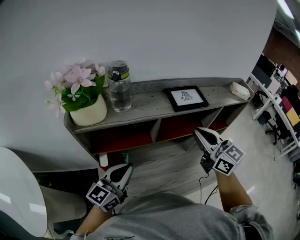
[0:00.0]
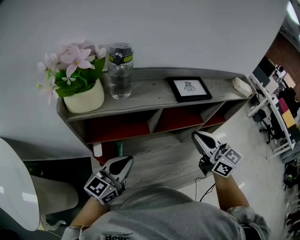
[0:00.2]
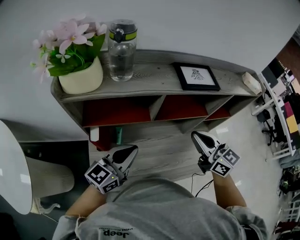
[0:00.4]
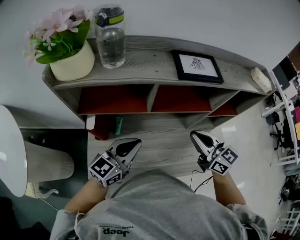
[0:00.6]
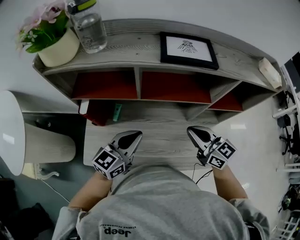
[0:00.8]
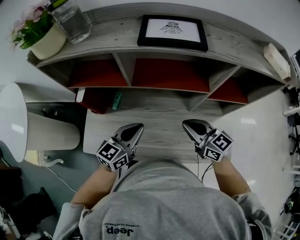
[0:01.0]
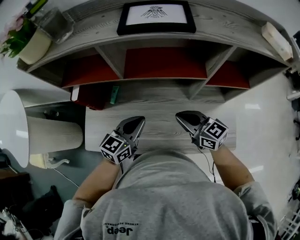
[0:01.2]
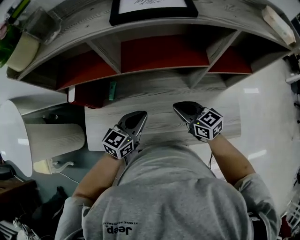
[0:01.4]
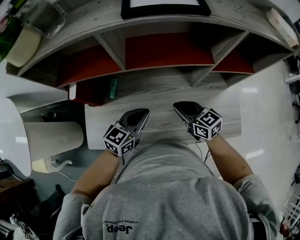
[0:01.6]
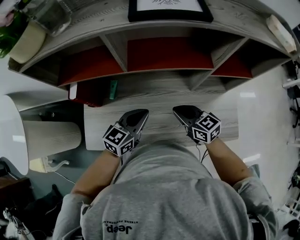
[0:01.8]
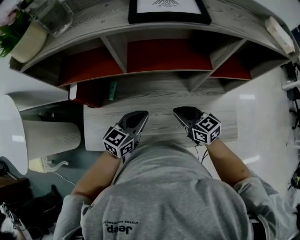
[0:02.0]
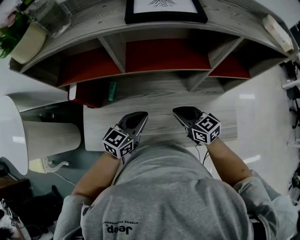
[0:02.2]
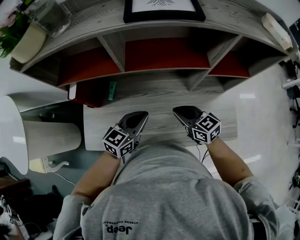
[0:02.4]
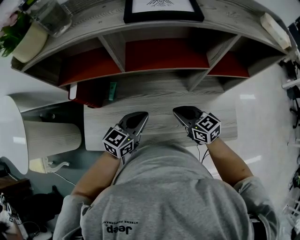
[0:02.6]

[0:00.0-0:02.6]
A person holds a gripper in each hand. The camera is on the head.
0:00.0 to 0:01.2: The right gripper heads downward, covering about 30 cm, and rotates some 40 degrees. The left gripper shifts about 25 cm to the right and downward, and swivels about 20 degrees.
0:01.2 to 0:02.6: The right gripper ends up some 5 cm from where it was.

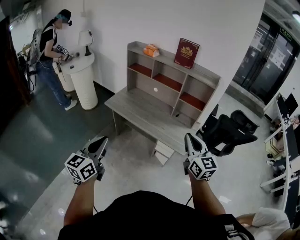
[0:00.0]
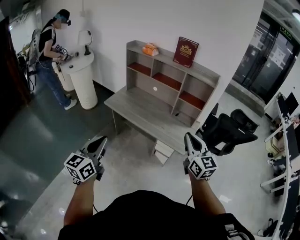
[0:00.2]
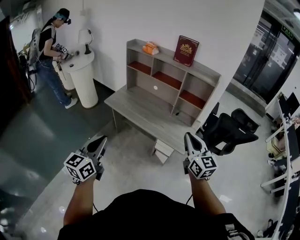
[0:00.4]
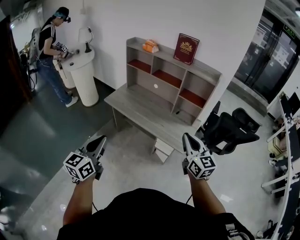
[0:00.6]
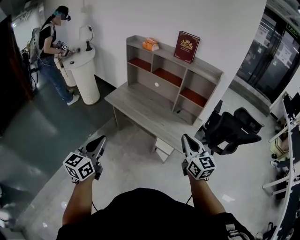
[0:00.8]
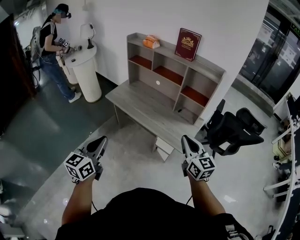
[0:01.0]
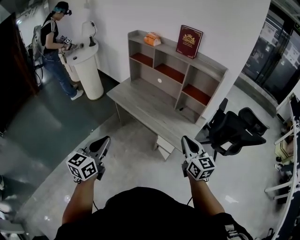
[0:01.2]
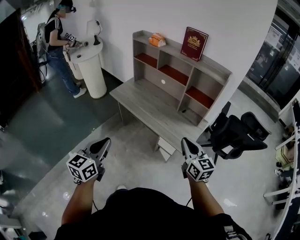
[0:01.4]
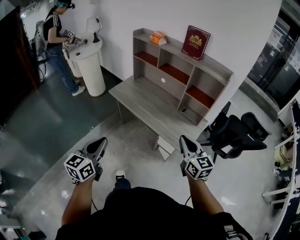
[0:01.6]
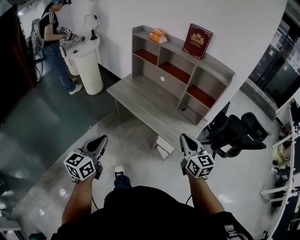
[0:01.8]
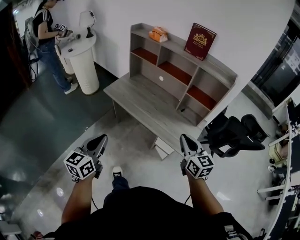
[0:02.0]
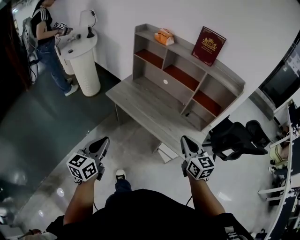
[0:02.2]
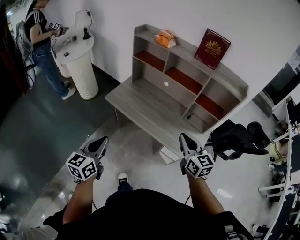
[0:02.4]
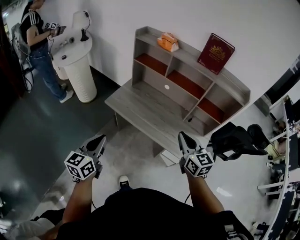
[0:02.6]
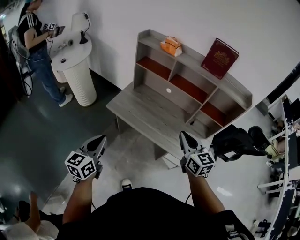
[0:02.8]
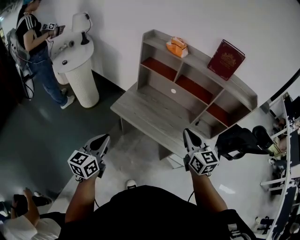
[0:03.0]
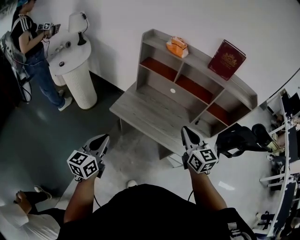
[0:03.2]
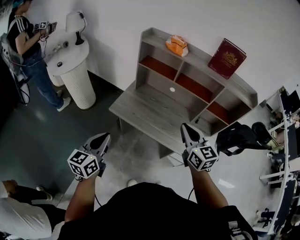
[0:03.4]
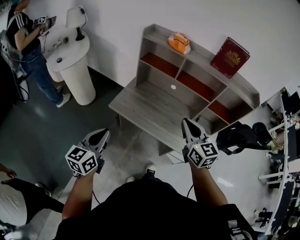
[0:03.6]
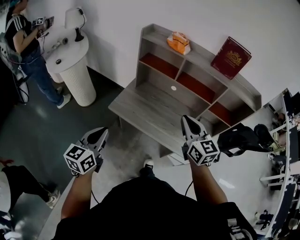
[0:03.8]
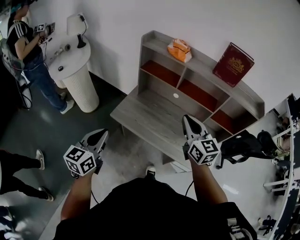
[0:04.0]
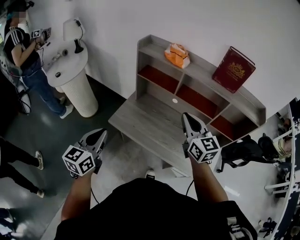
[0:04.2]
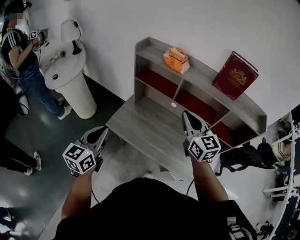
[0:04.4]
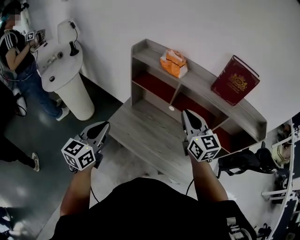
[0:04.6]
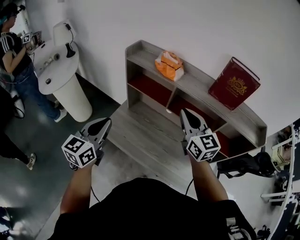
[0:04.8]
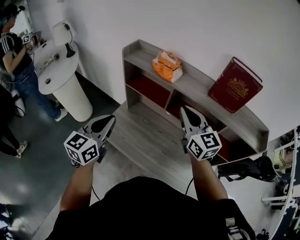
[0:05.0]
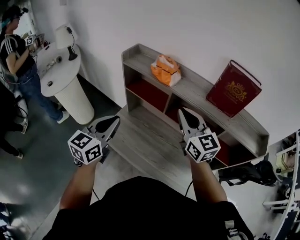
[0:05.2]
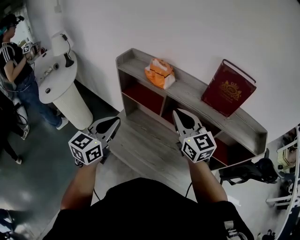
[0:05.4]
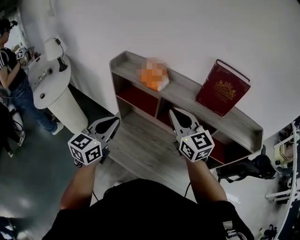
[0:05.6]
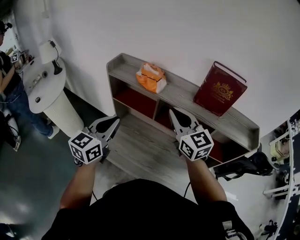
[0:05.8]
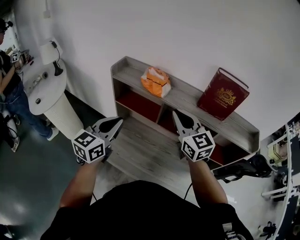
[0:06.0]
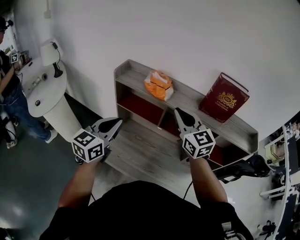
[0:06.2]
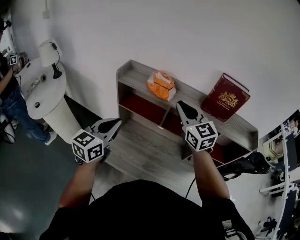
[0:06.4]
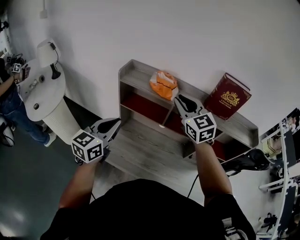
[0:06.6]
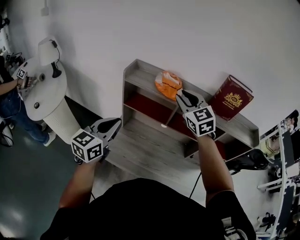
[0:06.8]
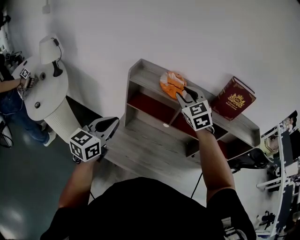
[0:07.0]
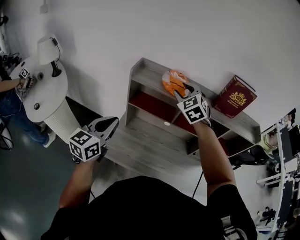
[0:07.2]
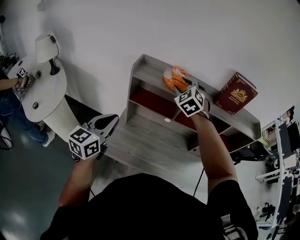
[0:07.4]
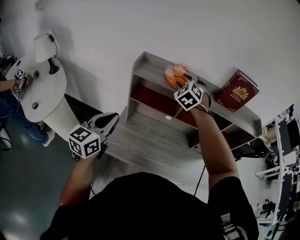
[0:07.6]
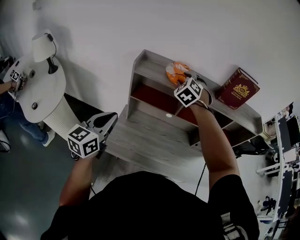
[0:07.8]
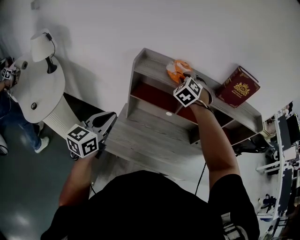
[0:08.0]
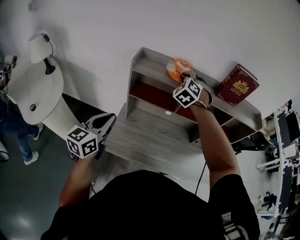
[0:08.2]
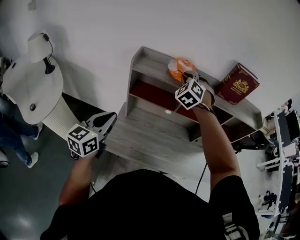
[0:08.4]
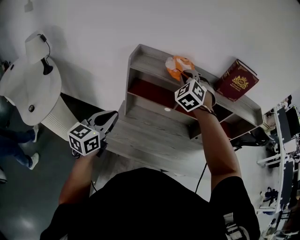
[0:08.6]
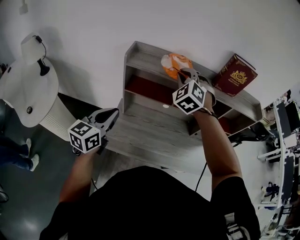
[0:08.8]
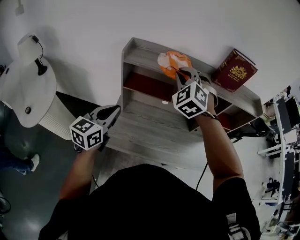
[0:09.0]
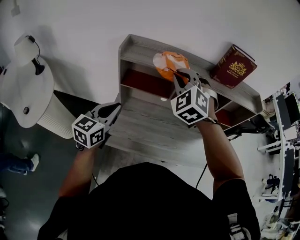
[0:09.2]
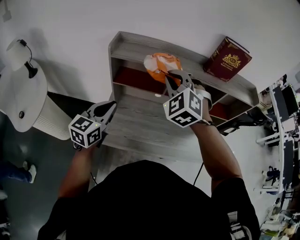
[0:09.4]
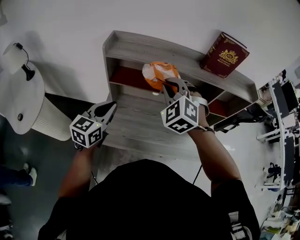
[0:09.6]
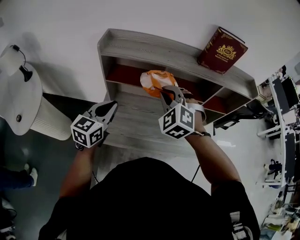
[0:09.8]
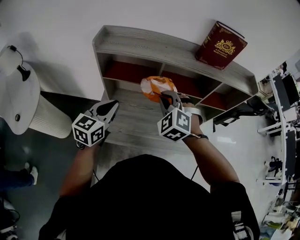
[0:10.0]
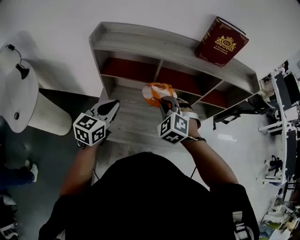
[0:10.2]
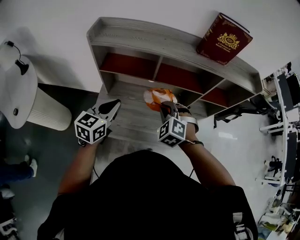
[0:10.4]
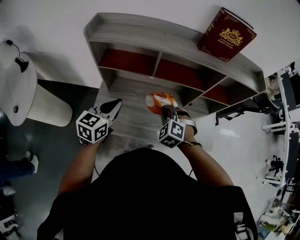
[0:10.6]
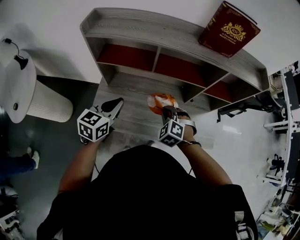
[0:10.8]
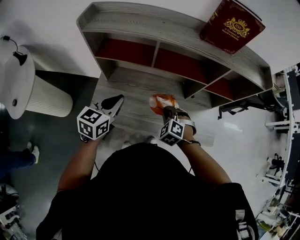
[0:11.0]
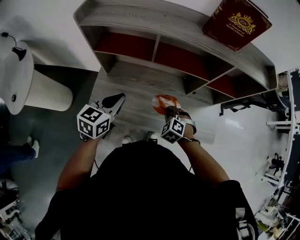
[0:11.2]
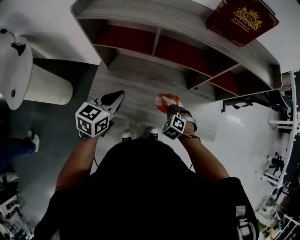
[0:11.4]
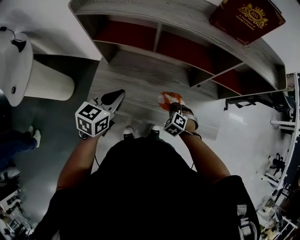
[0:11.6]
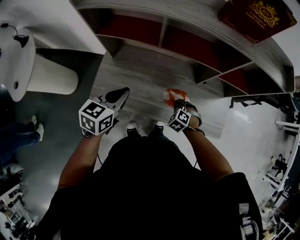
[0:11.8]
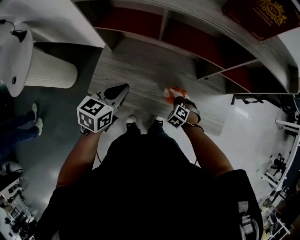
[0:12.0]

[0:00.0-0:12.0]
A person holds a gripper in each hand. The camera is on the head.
0:00.0 to 0:01.6: The left gripper shifts about 10 cm to the right and downward; the right gripper goes some 10 cm downward and forward.
0:01.6 to 0:03.0: Both grippers move forward and to the left, approximately 35 cm.
0:03.0 to 0:04.4: The two grippers go some 20 cm forward.
0:04.4 to 0:06.0: The right gripper goes roughly 10 cm forward. The left gripper heads forward and to the right, covering some 20 cm.
0:06.0 to 0:07.6: The right gripper moves forward and to the left, roughly 20 cm, turns by approximately 60 degrees, and opens. Meanwhile the left gripper moves to the left, approximately 15 cm.
0:07.6 to 0:09.0: The right gripper goes approximately 10 cm backward, and closes.
0:09.0 to 0:10.4: The right gripper travels downward, to the right and backward by approximately 25 cm, and swivels approximately 20 degrees; the left gripper moves to the right and downward, some 15 cm.
0:10.4 to 0:12.0: The right gripper is displaced downward and to the right by some 35 cm, and swivels about 20 degrees, while the left gripper goes roughly 10 cm downward and to the right.

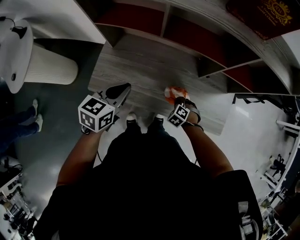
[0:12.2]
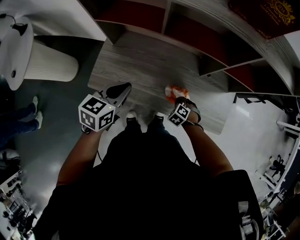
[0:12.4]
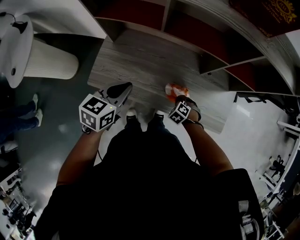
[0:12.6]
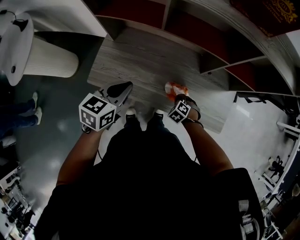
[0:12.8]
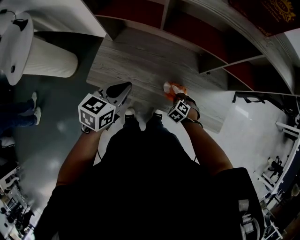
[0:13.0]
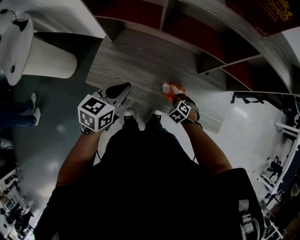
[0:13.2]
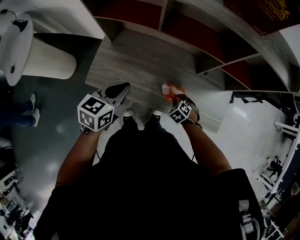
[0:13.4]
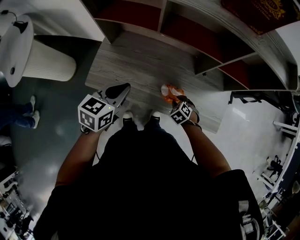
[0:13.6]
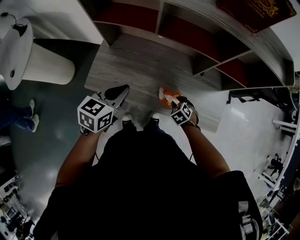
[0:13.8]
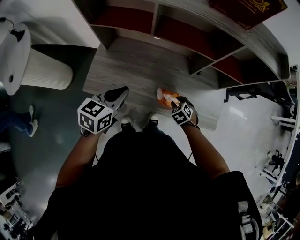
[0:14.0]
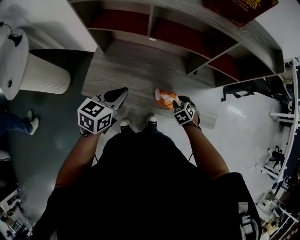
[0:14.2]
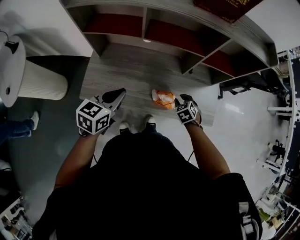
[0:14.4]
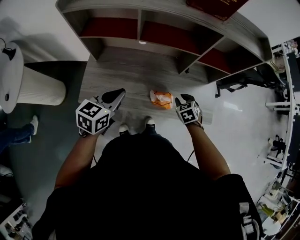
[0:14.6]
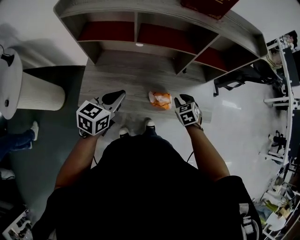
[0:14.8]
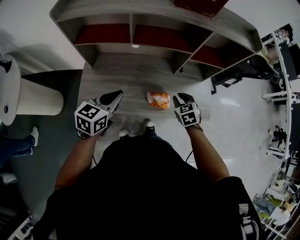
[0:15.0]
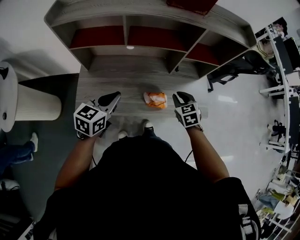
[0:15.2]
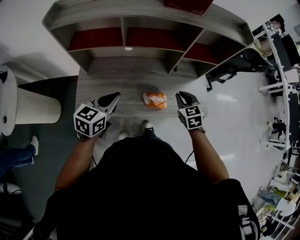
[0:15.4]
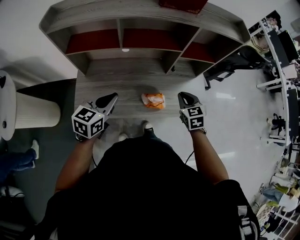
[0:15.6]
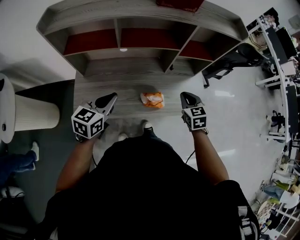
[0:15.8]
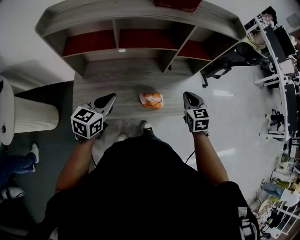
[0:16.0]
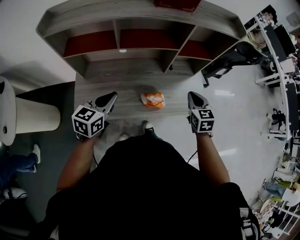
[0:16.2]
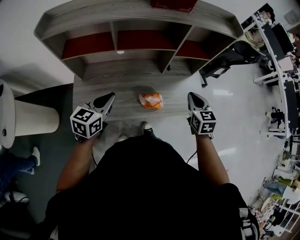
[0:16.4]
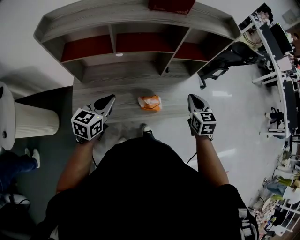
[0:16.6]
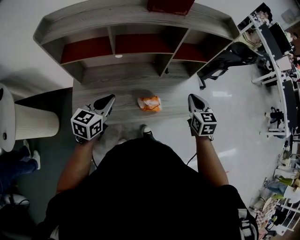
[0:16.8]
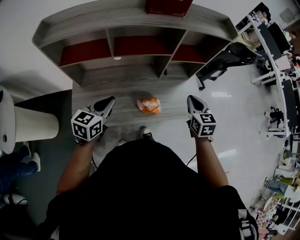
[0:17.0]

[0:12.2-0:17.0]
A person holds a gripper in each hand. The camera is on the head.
0:12.2 to 0:13.8: The right gripper opens its fingers.
0:13.8 to 0:15.4: The right gripper moves upward, roughly 20 cm, and swivels some 40 degrees.
0:15.4 to 0:17.0: The right gripper heads upward and to the right, covering some 10 cm, and changes its angle by approximately 20 degrees.

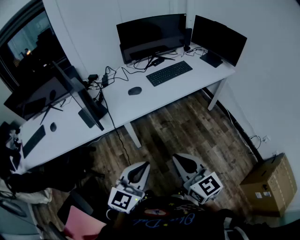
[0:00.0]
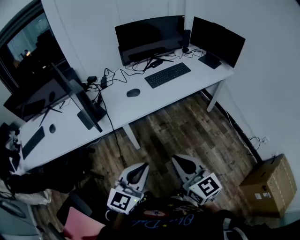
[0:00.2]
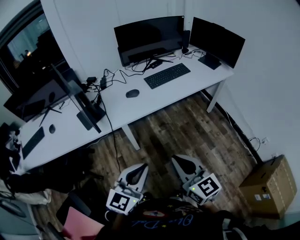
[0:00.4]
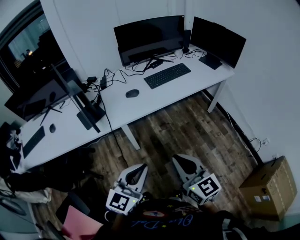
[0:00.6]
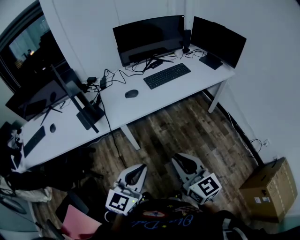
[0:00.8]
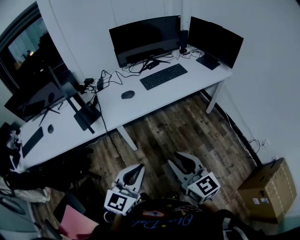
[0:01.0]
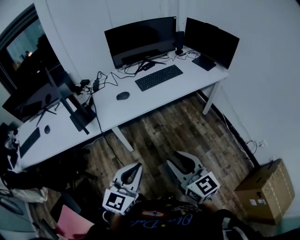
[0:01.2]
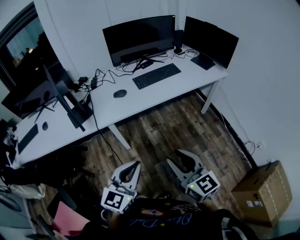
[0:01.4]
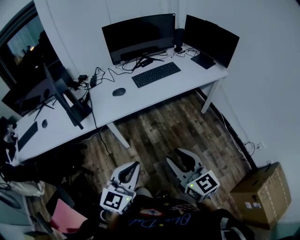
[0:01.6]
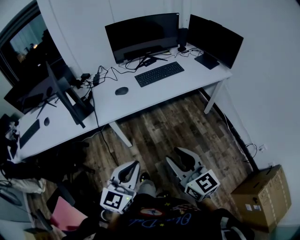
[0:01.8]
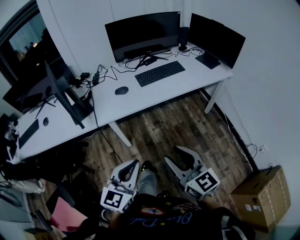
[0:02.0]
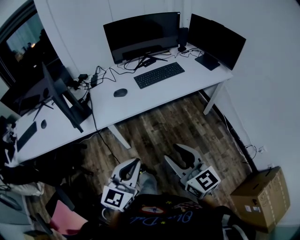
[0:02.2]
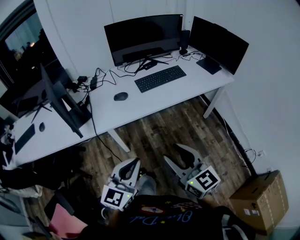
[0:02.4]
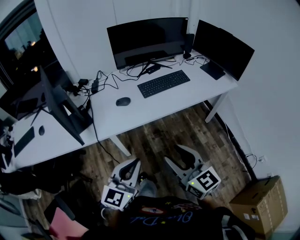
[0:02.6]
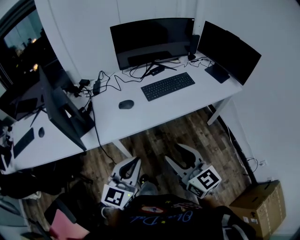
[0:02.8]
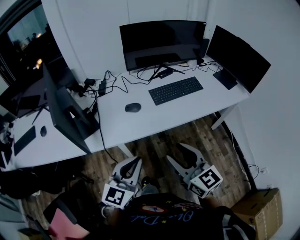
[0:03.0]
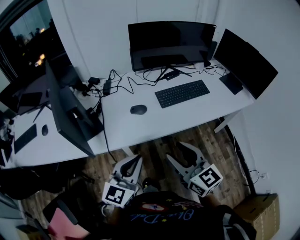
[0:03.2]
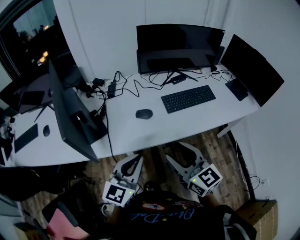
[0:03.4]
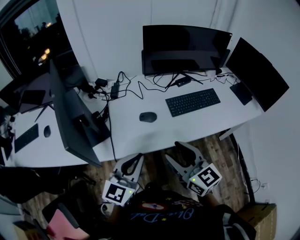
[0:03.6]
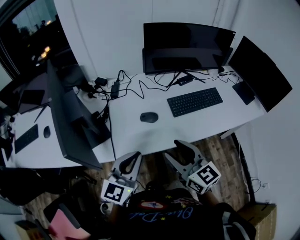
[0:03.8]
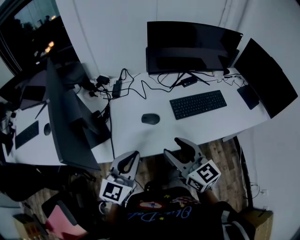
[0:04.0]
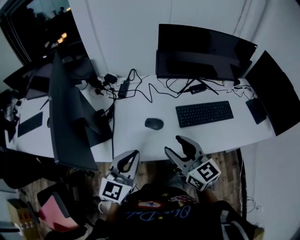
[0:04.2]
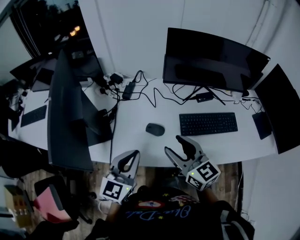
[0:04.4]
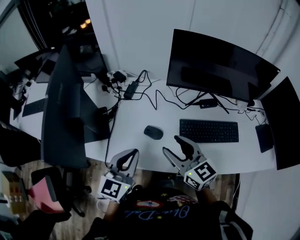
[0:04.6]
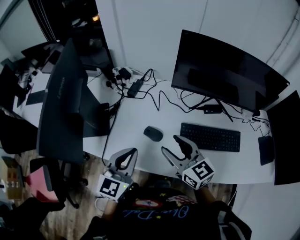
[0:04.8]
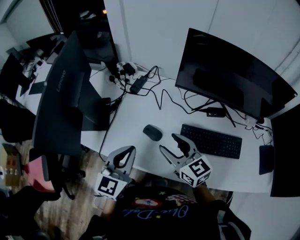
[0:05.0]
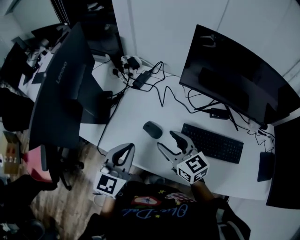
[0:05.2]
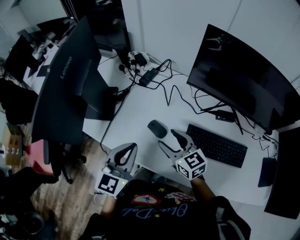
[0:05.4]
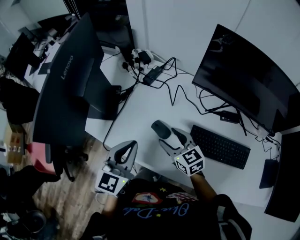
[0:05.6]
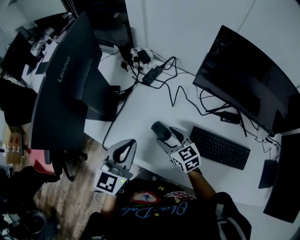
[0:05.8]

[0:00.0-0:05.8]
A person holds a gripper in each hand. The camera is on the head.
0:00.0 to 0:01.4: The two grippers go approximately 10 cm to the right. The right gripper opens.
0:01.4 to 0:02.8: The two grippers go about 15 cm forward.
0:02.8 to 0:04.4: Both grippers move forward, about 30 cm. The right gripper rotates about 20 degrees. The left gripper swivels roughly 20 degrees.
0:04.4 to 0:05.8: The right gripper is displaced downward by some 15 cm, and swivels about 30 degrees. The left gripper changes place by some 5 cm, and changes its angle by approximately 20 degrees.
